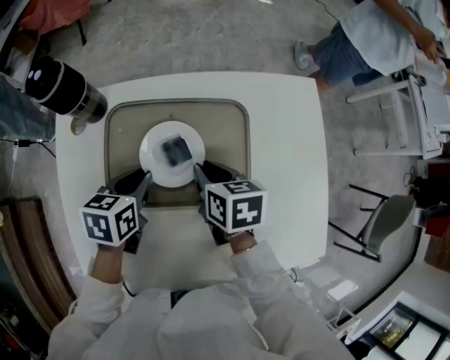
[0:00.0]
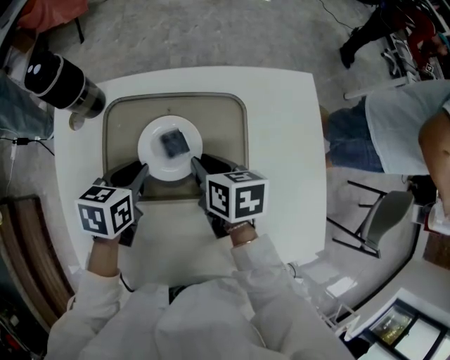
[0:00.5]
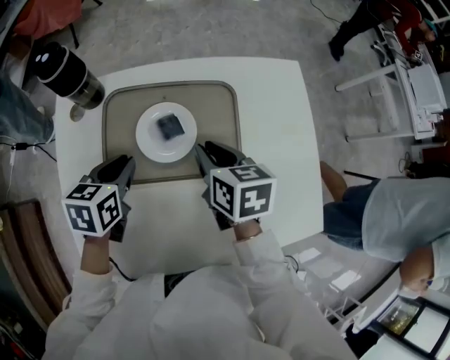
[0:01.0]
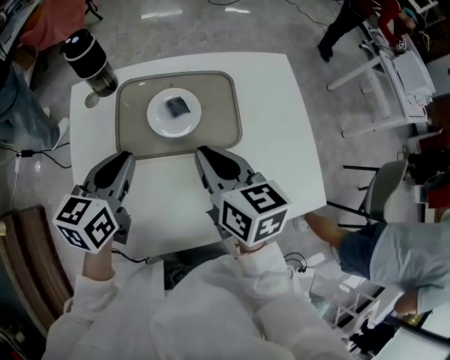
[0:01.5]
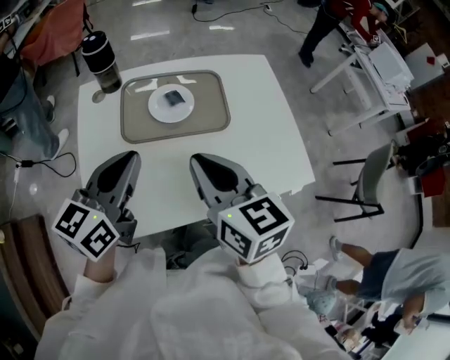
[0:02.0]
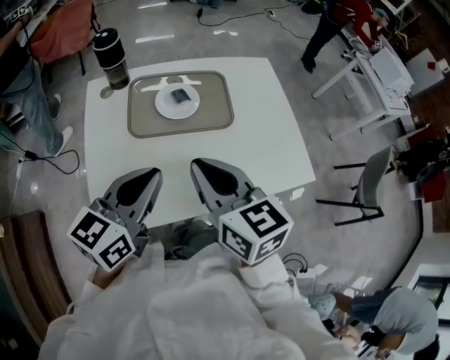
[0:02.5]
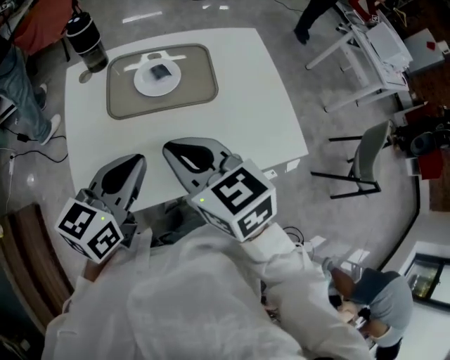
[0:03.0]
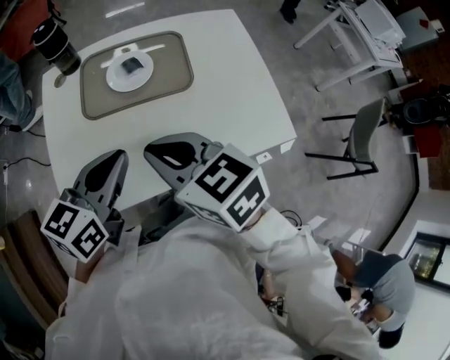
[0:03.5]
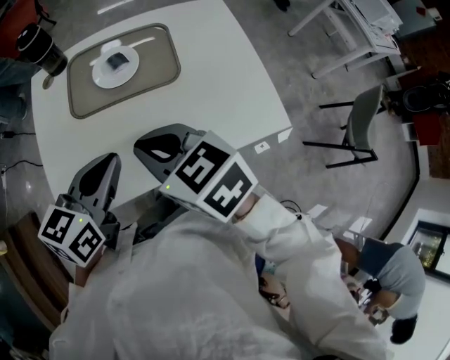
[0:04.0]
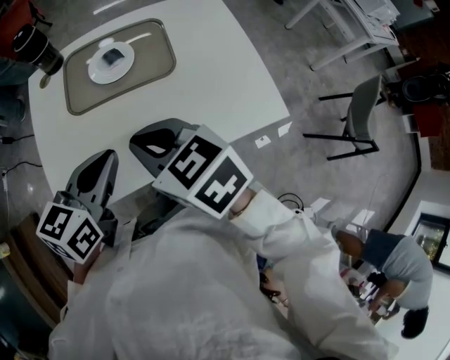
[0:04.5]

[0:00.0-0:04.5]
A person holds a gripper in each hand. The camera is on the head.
0:00.0 to 0:02.0: The right gripper travels backward and upward by roughly 35 cm, and tilts its fingers approximately 30 degrees upward; the left gripper moves upward and backward, approximately 30 cm, and tilts its fingers roughly 40 degrees upward.
0:02.0 to 0:04.5: The right gripper shifts roughly 5 cm downward, and turns by roughly 30 degrees. The left gripper is displaced to the right, downward and backward by about 15 cm.

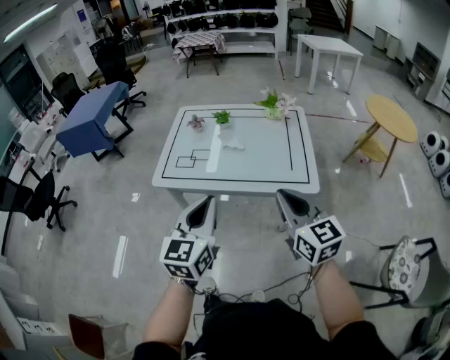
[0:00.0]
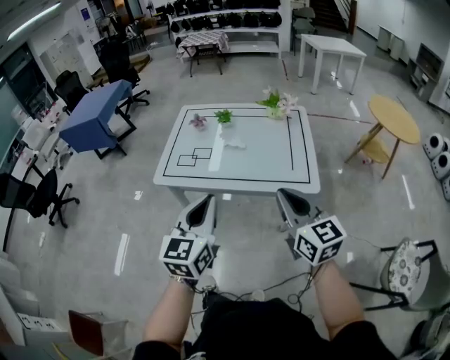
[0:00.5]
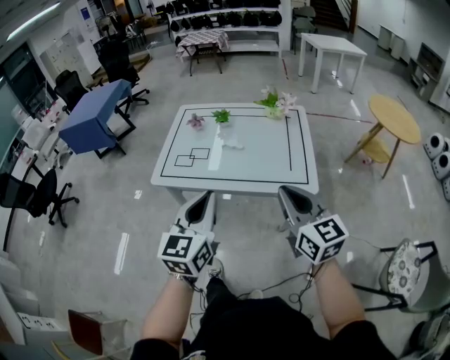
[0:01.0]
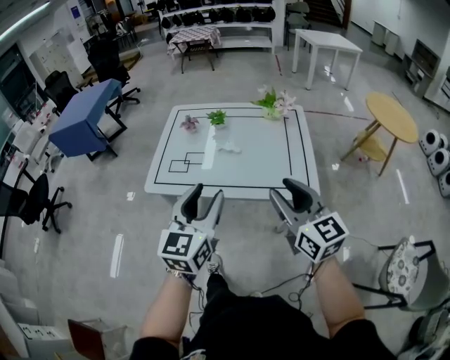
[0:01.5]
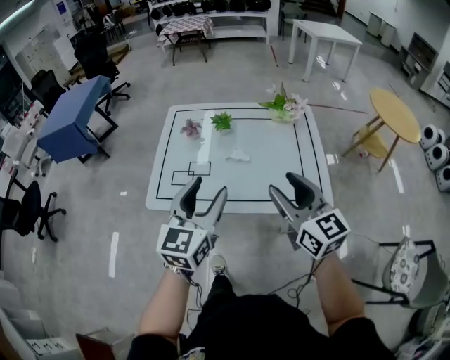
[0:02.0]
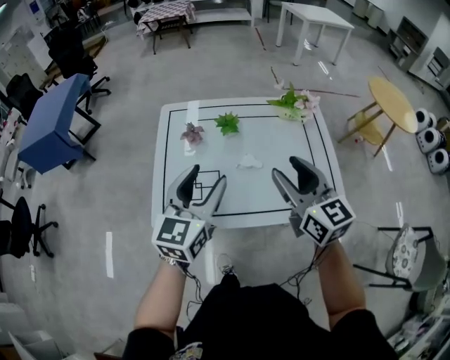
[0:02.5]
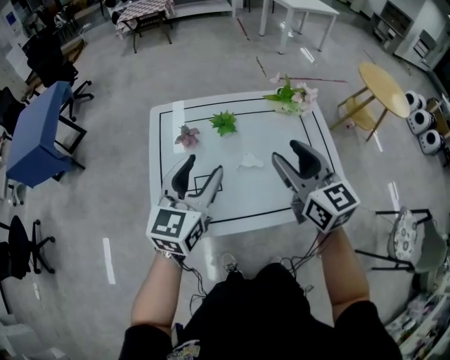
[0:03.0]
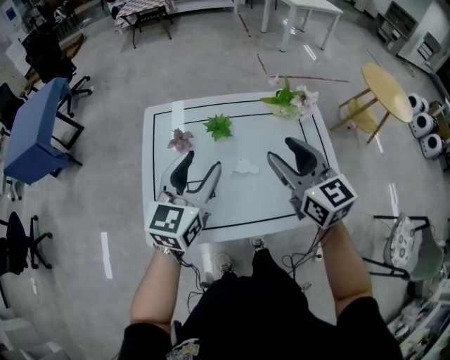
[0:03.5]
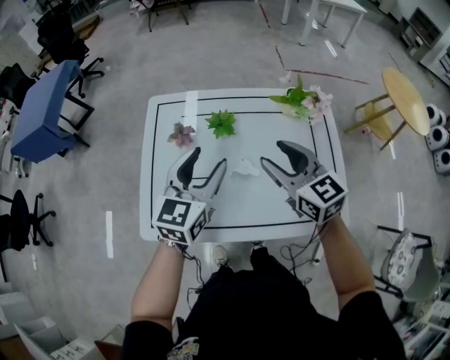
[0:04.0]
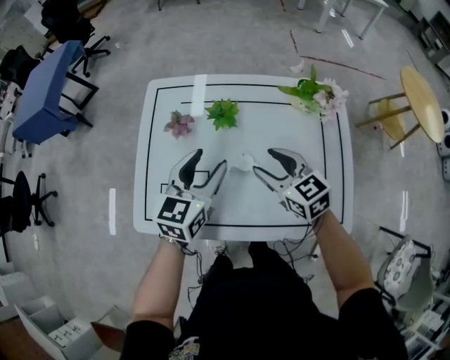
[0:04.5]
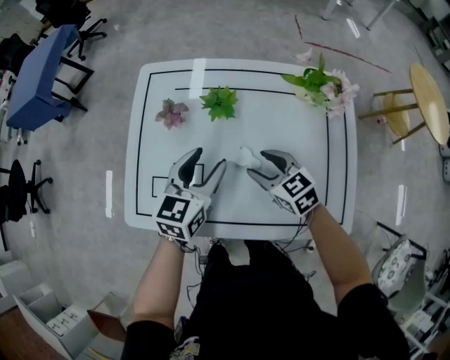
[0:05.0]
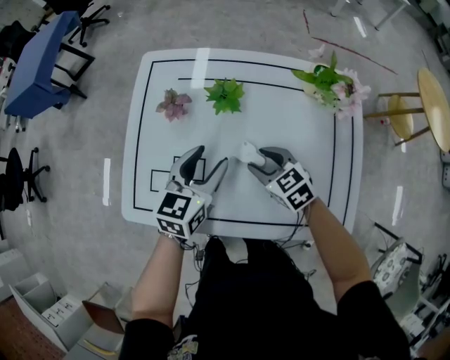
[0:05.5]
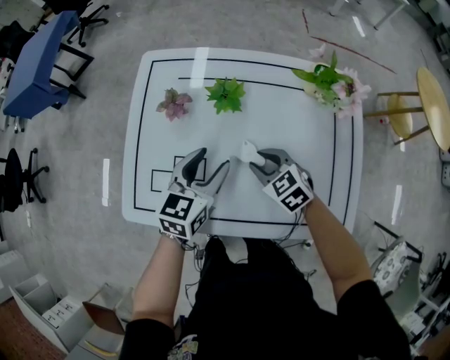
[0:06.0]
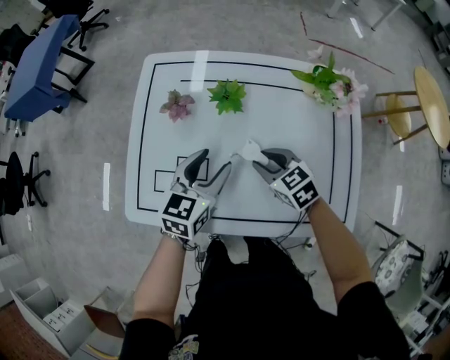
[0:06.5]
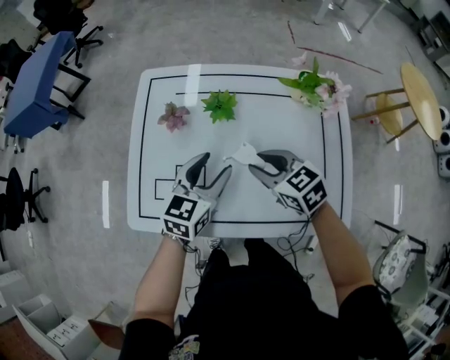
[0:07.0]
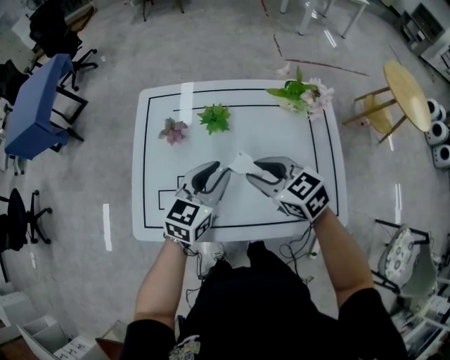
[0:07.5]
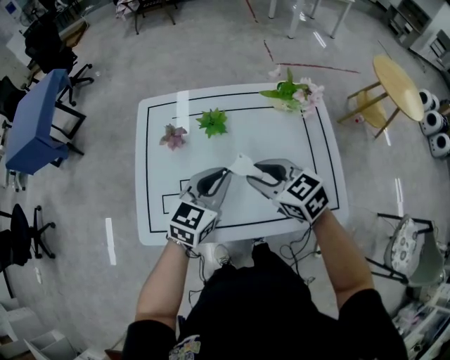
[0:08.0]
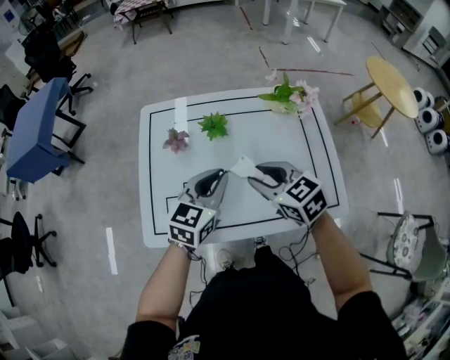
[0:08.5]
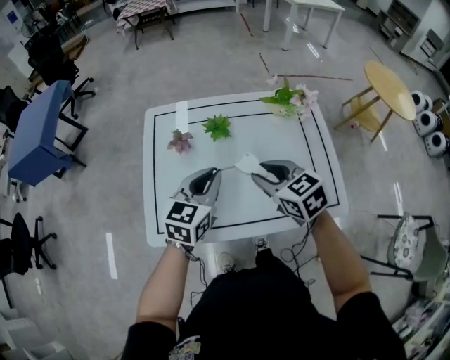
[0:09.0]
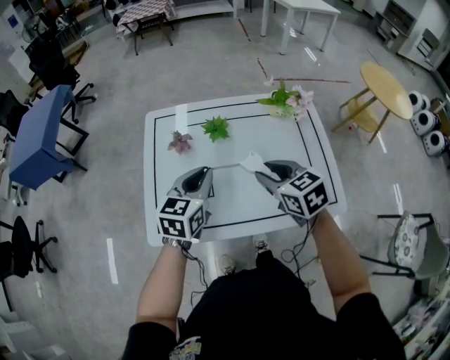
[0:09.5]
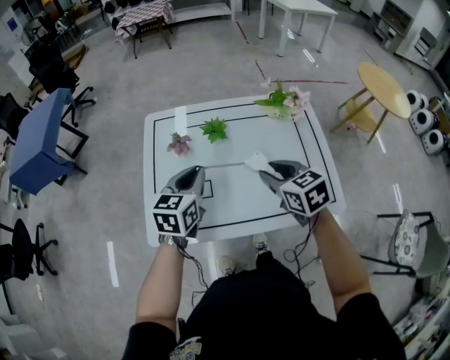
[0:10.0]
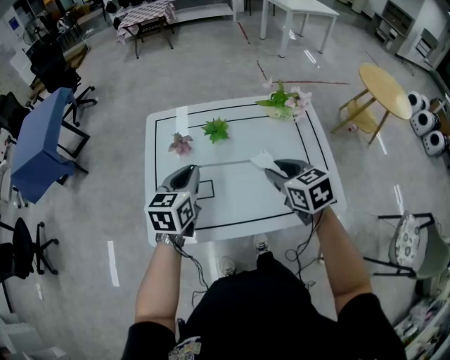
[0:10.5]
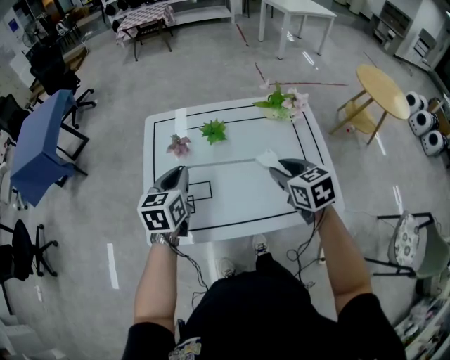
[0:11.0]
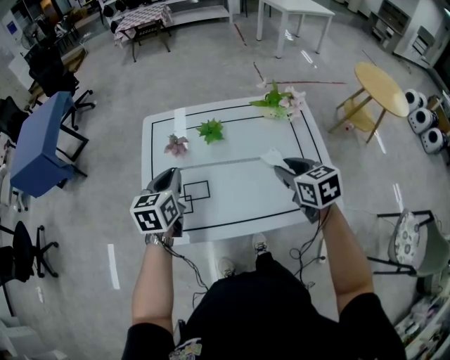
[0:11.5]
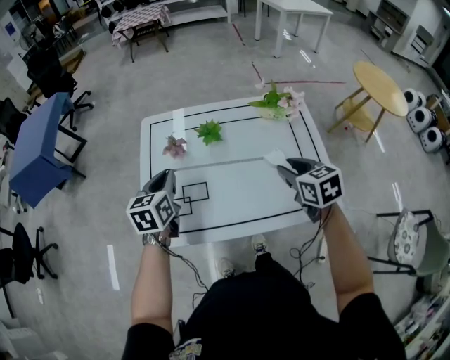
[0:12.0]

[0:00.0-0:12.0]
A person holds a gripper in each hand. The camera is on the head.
0:00.0 to 0:02.0: Both grippers travel together forward, roughly 20 cm. The left gripper opens up, while the right gripper opens up.
0:02.0 to 0:04.0: The grippers both shift forward by about 25 cm.
0:04.0 to 0:06.0: The right gripper moves downward, about 25 cm, points its fingers approximately 30 degrees further downward, and closes its fingers; the left gripper shifts some 15 cm downward.
0:06.0 to 0:08.0: The left gripper moves upward, roughly 10 cm, turns by roughly 20 degrees, and closes up. The right gripper shifts about 20 cm upward.
0:08.0 to 0:10.0: The right gripper moves approximately 5 cm. The left gripper travels to the left by some 10 cm.
0:10.0 to 0:12.0: The right gripper shifts roughly 10 cm to the right. Meanwhile the left gripper goes approximately 5 cm to the left.

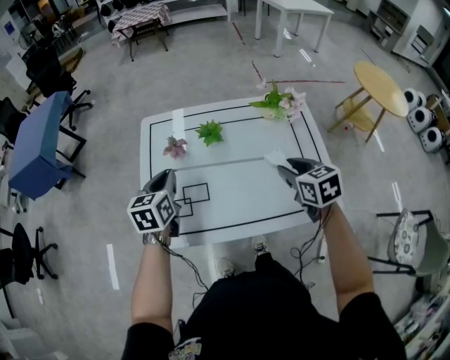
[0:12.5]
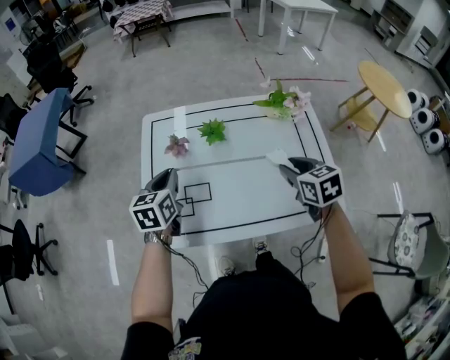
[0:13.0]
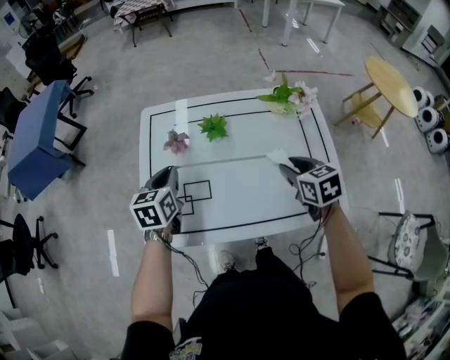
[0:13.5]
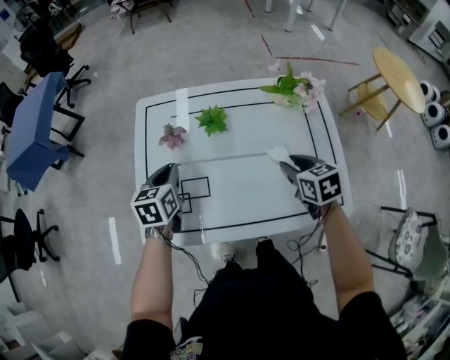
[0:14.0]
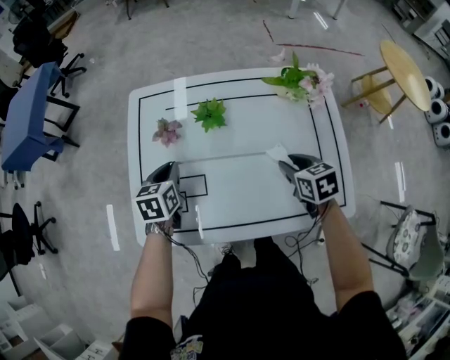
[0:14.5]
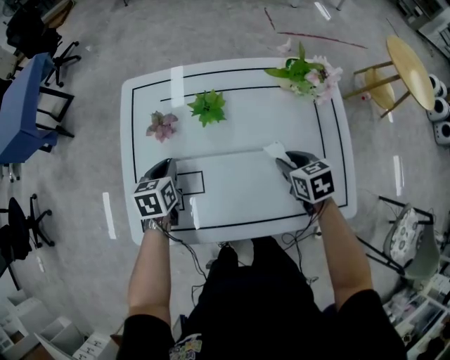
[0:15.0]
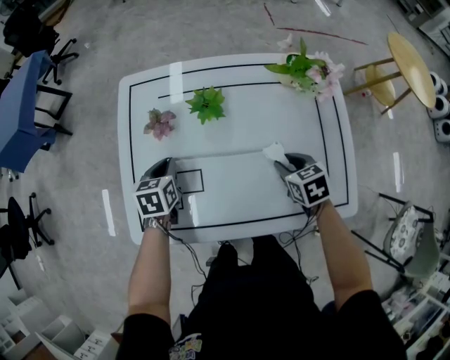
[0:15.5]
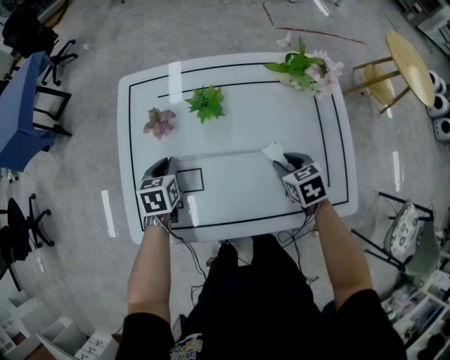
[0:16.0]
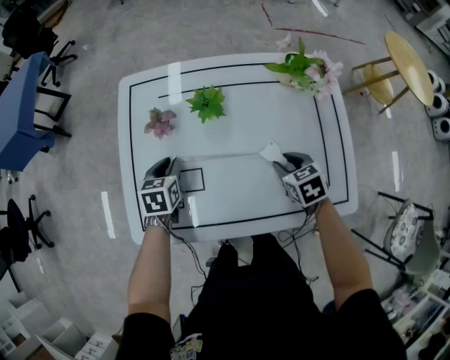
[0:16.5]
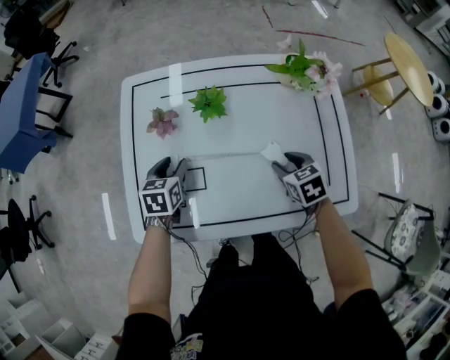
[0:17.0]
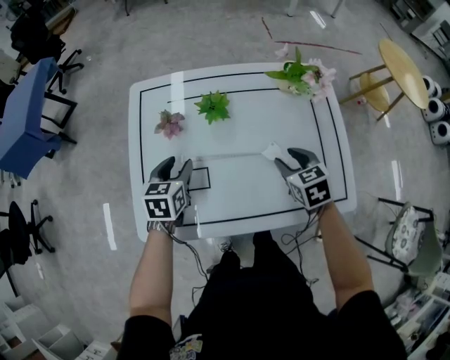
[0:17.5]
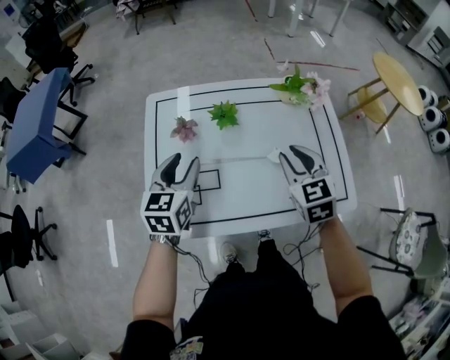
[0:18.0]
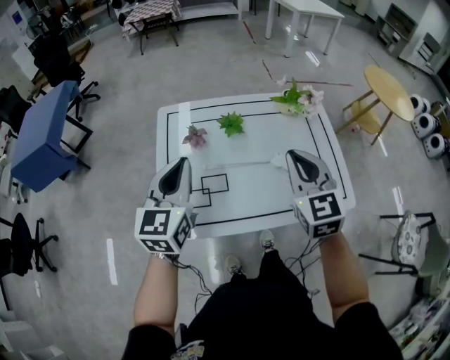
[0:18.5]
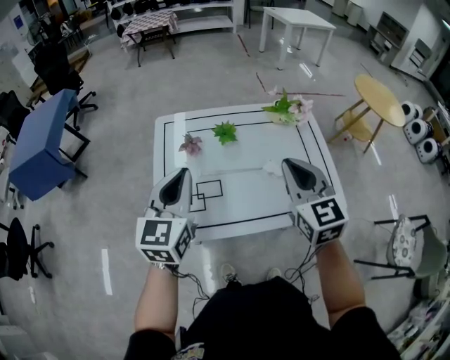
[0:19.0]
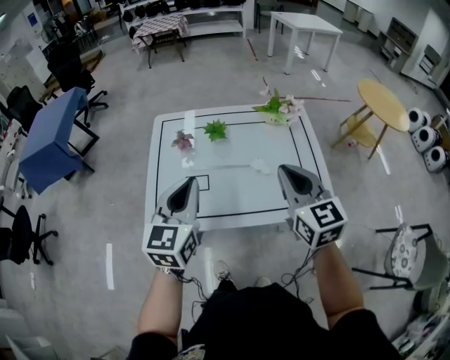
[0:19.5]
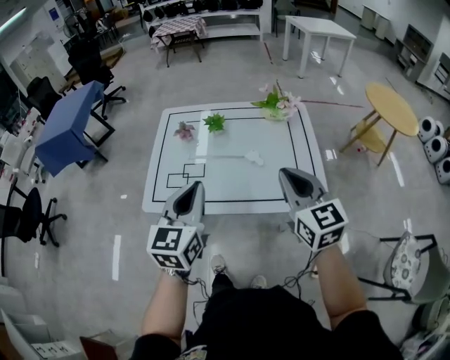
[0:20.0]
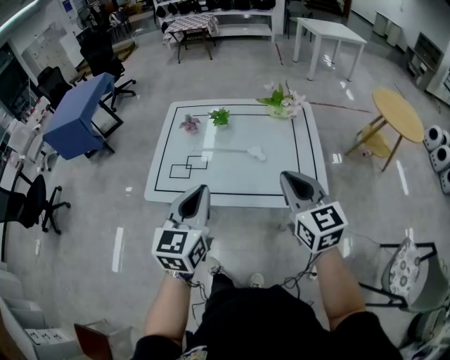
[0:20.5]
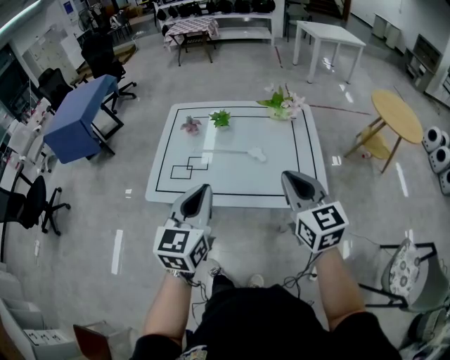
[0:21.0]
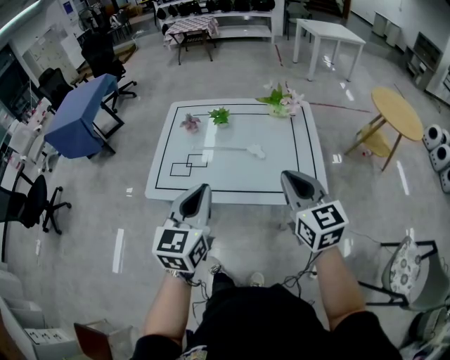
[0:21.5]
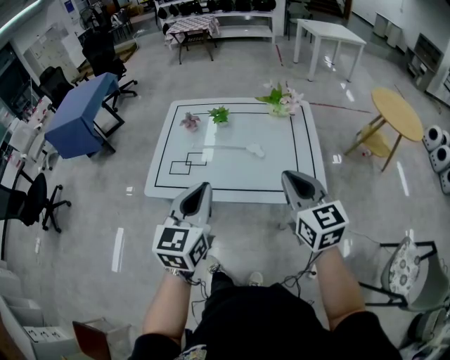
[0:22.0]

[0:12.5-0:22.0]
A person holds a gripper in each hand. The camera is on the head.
0:12.5 to 0:14.5: The grippers both shift downward and forward by approximately 15 cm.
0:14.5 to 0:16.5: The two grippers go about 5 cm downward.
0:16.5 to 0:18.0: The two grippers go some 20 cm upward. The left gripper rotates roughly 30 degrees, and opens. Meanwhile the right gripper swivels approximately 30 degrees.
0:18.0 to 0:20.0: The right gripper moves backward, upward and to the right, roughly 25 cm, swivels some 20 degrees, and closes. The left gripper moves backward, to the right and upward, roughly 30 cm, and closes.
0:20.0 to 0:22.0: The grippers both shift backward by approximately 5 cm.

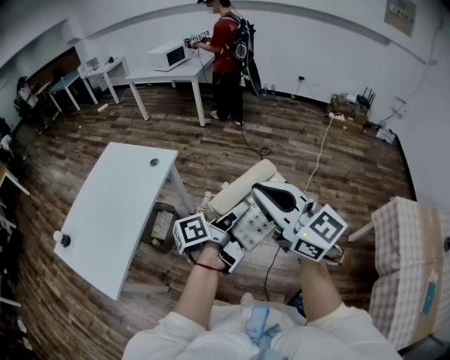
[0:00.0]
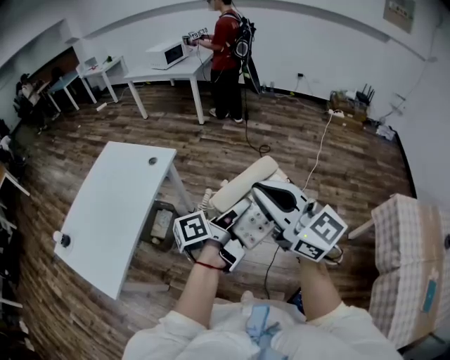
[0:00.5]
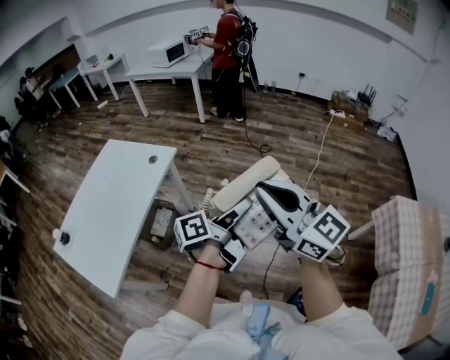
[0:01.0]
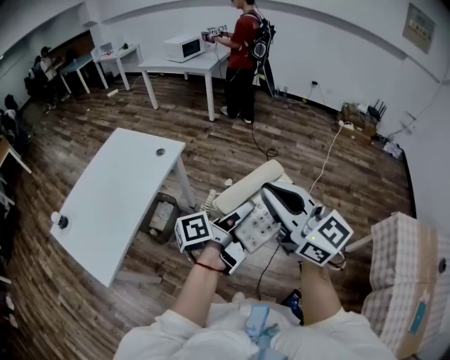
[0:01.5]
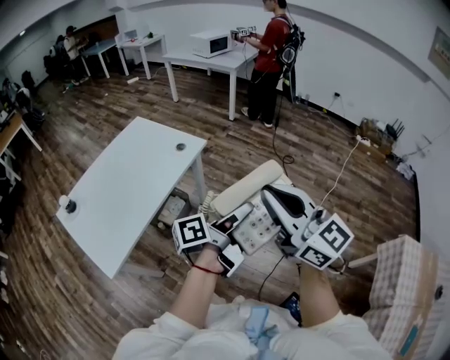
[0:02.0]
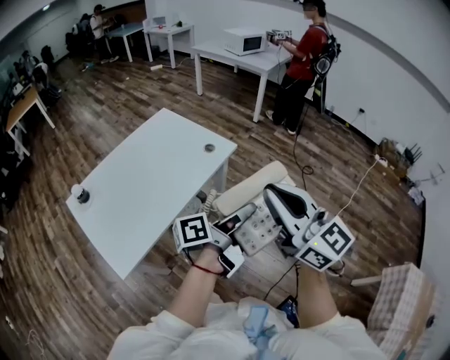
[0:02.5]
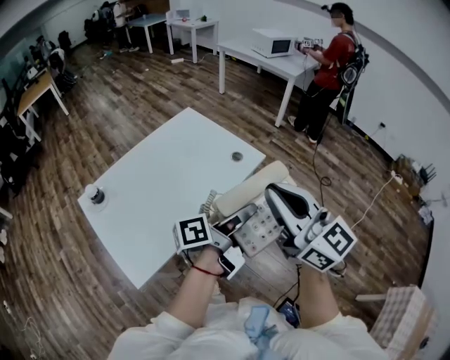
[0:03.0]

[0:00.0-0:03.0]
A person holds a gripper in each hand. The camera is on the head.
0:01.5 to 0:03.0: The right gripper moves about 35 cm.
